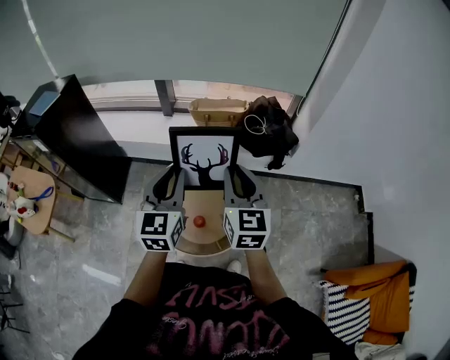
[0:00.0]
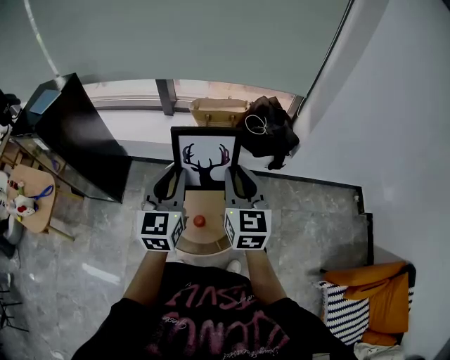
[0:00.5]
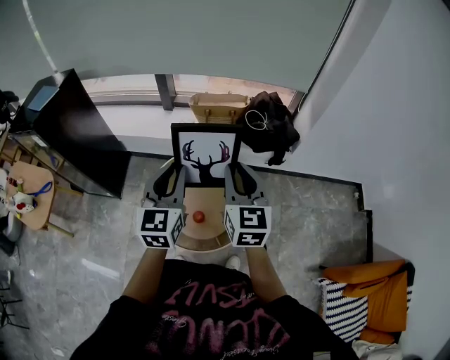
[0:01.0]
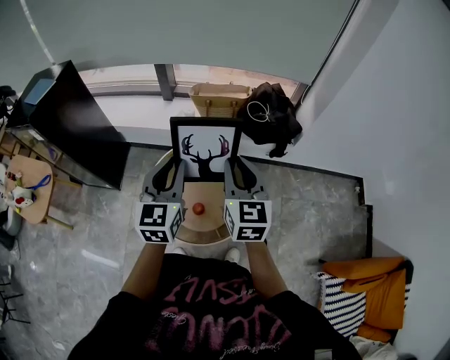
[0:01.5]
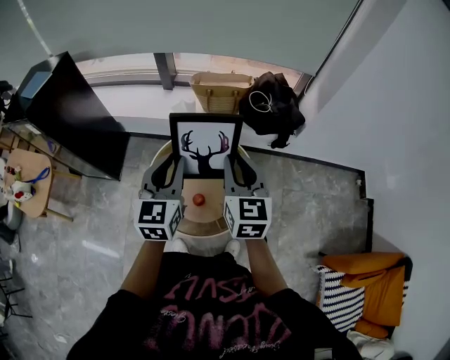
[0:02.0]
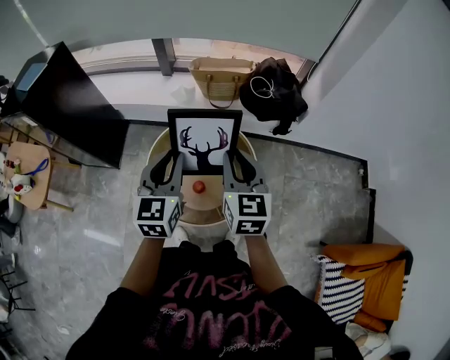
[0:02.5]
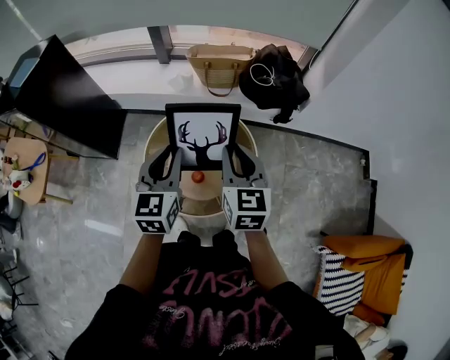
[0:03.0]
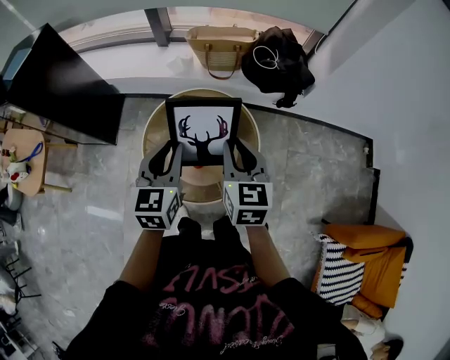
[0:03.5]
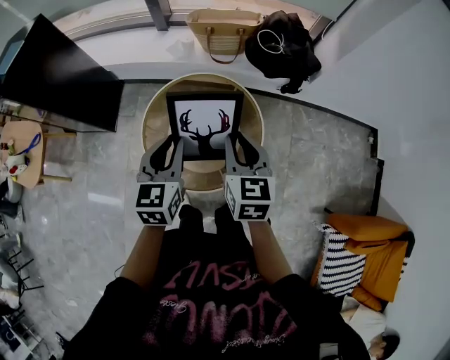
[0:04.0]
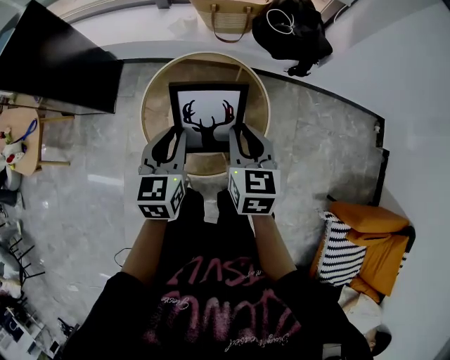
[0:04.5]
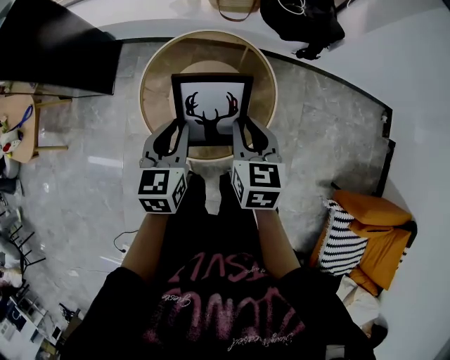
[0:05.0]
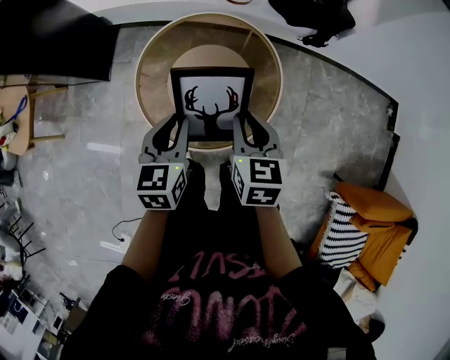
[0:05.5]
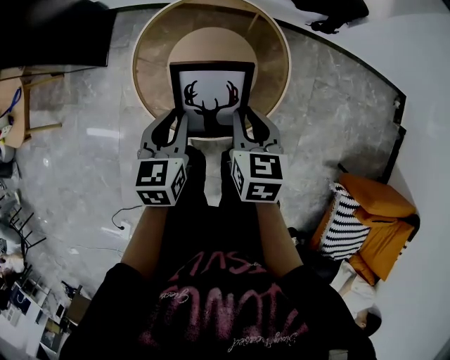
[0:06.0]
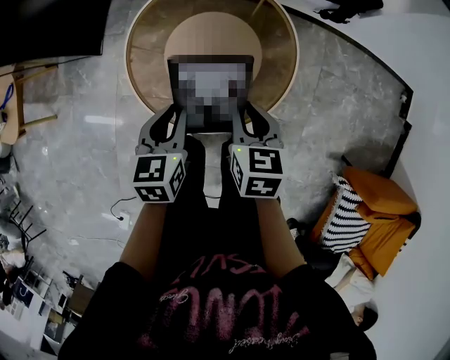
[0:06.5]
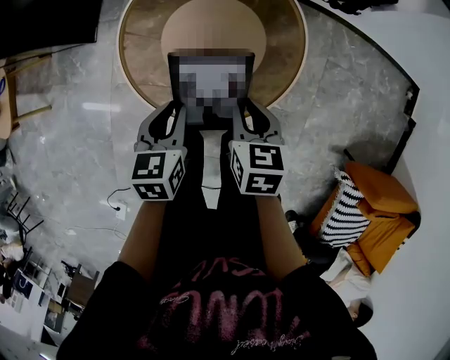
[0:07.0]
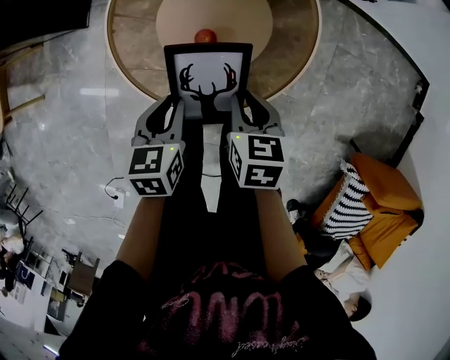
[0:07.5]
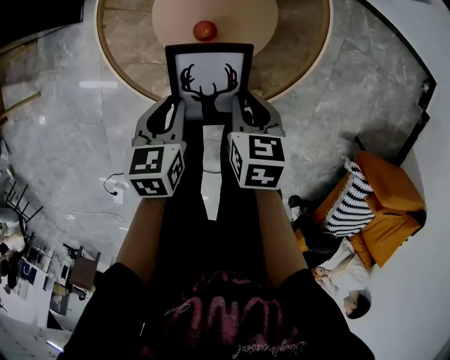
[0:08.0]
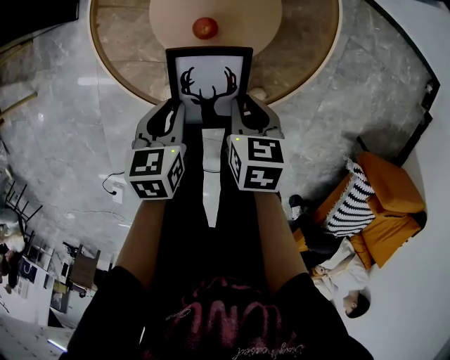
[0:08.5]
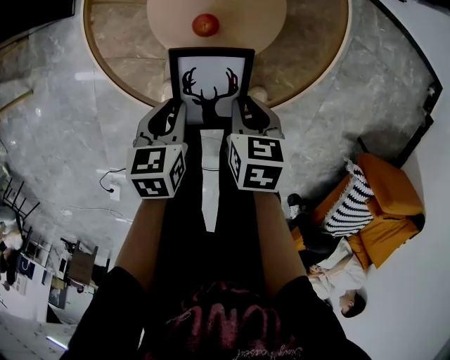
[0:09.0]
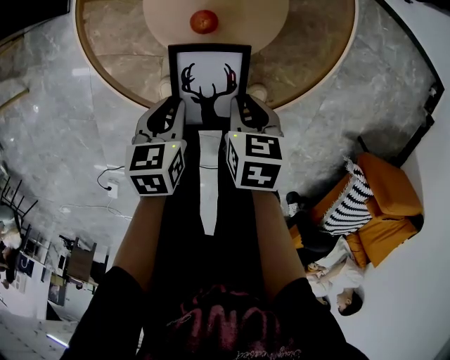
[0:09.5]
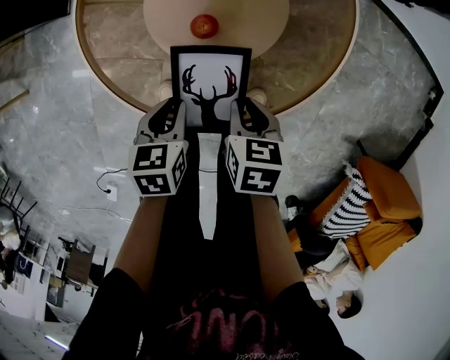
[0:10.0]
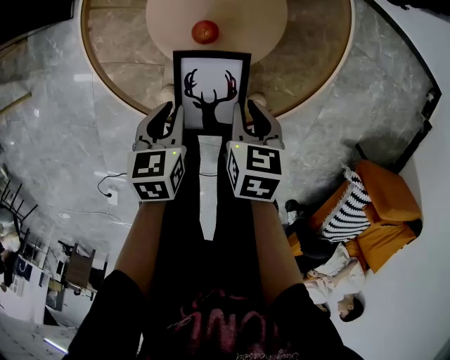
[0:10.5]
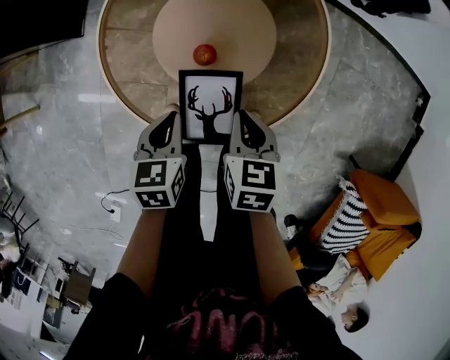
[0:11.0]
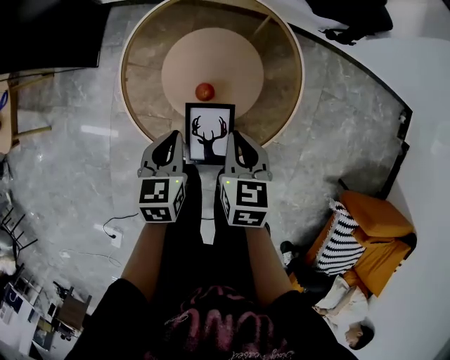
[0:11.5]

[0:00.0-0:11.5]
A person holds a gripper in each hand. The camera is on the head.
0:00.0 to 0:02.0: The right gripper changes place by approximately 5 cm.
0:02.0 to 0:04.0: Both grippers travel together downward, roughly 10 cm.
0:04.0 to 0:06.0: Both grippers travel together downward, approximately 20 cm.
0:06.0 to 0:07.5: The grippers both shift downward by approximately 15 cm.
0:07.5 to 0:09.5: Both grippers travel together downward, about 15 cm.
0:09.5 to 0:11.5: The left gripper shifts roughly 20 cm upward and forward, while the right gripper travels upward by about 20 cm, and swivels roughly 20 degrees.

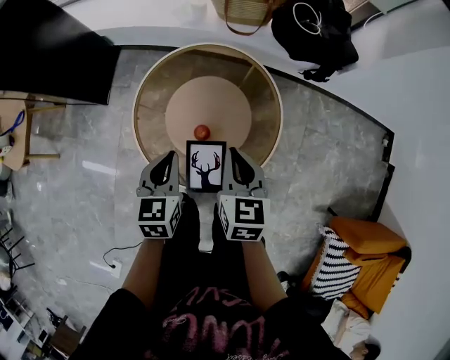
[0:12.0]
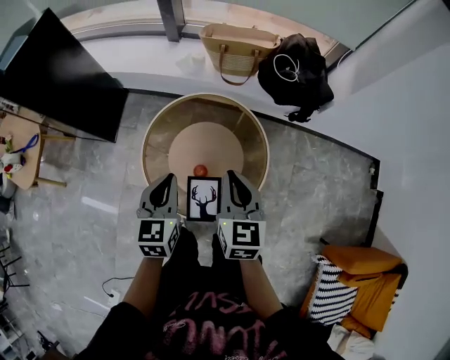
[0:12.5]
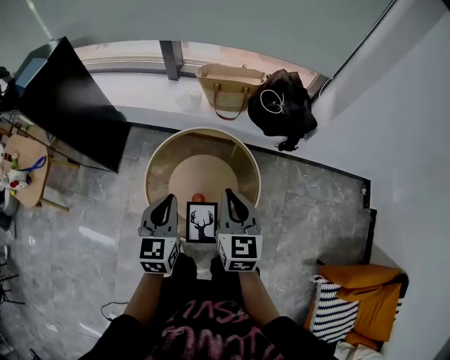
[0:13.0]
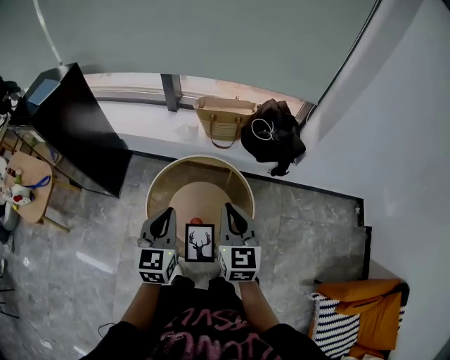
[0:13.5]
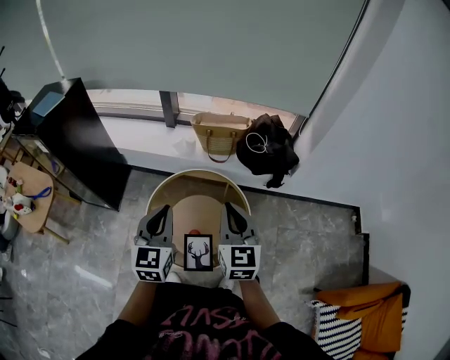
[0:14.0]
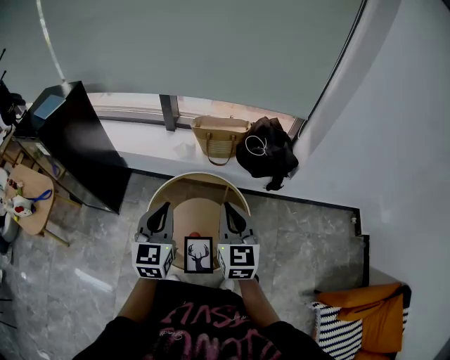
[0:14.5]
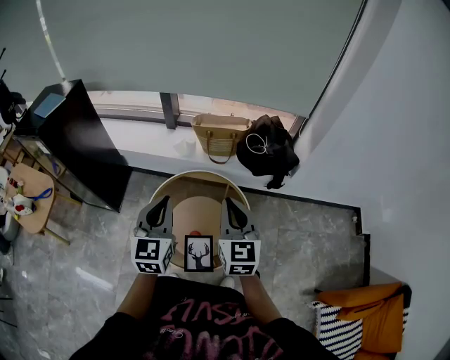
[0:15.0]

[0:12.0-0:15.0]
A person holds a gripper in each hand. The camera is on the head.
0:12.0 to 0:13.5: The grippers both shift upward by about 25 cm. The left gripper changes its angle by some 20 degrees; the right gripper rotates some 20 degrees.
0:13.5 to 0:15.0: The right gripper changes place by about 5 cm; the left gripper heads upward, covering some 5 cm.

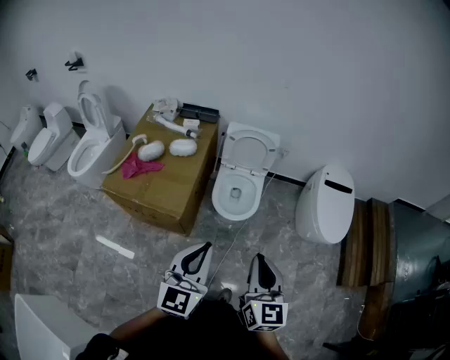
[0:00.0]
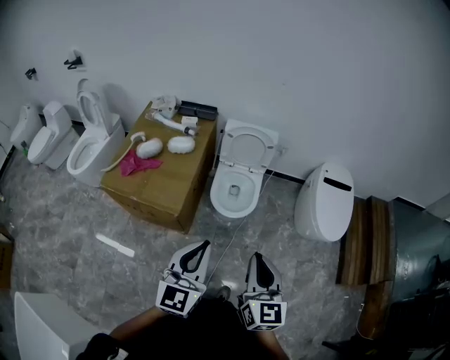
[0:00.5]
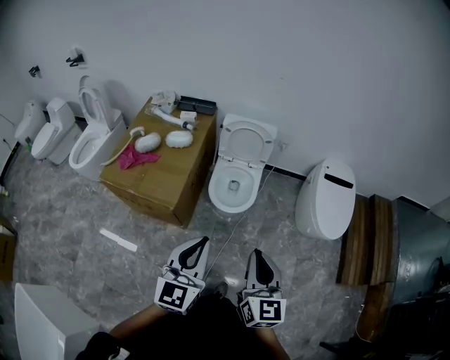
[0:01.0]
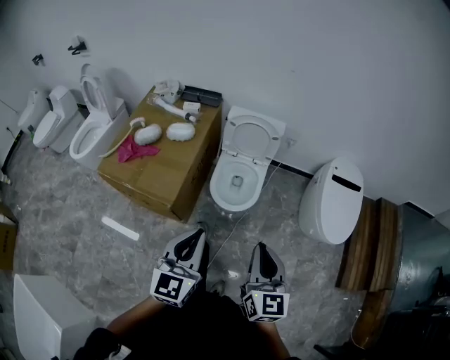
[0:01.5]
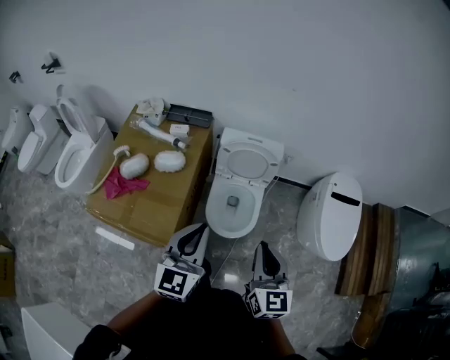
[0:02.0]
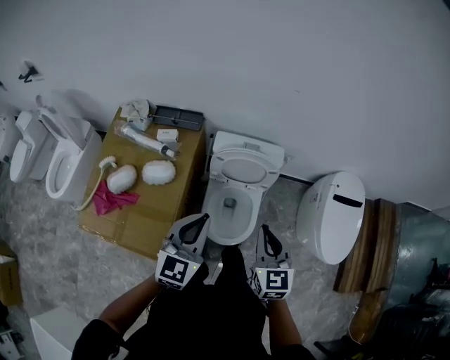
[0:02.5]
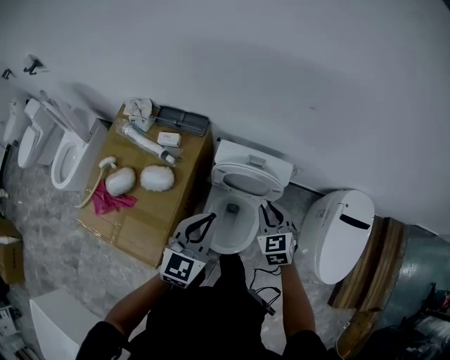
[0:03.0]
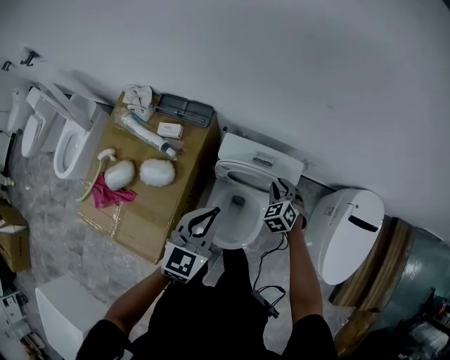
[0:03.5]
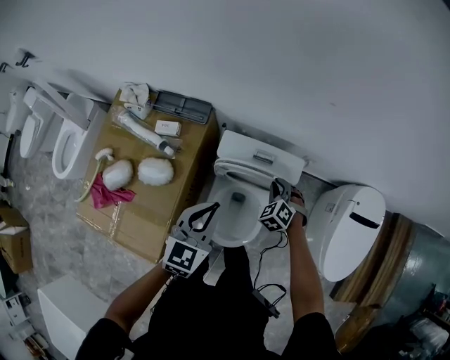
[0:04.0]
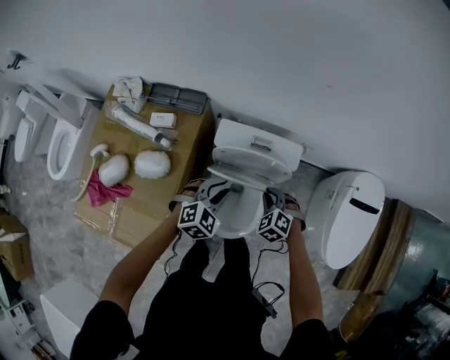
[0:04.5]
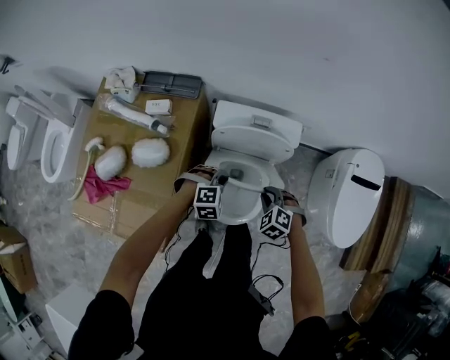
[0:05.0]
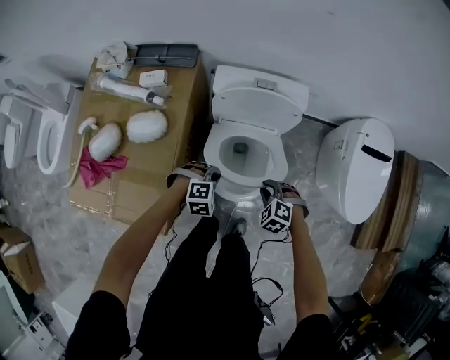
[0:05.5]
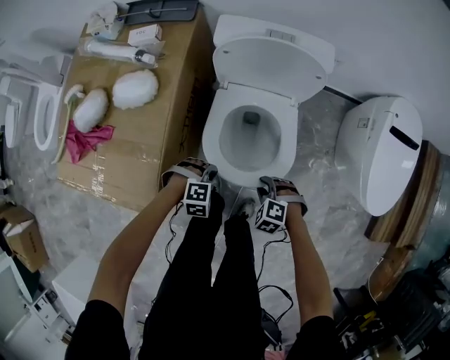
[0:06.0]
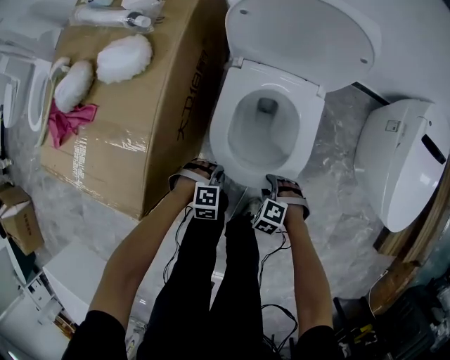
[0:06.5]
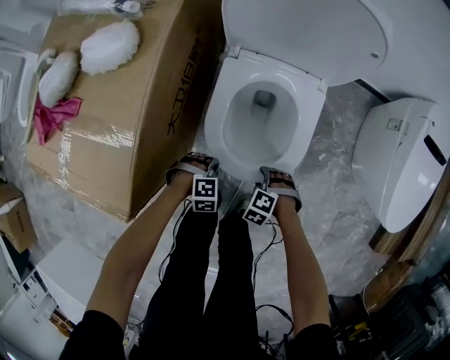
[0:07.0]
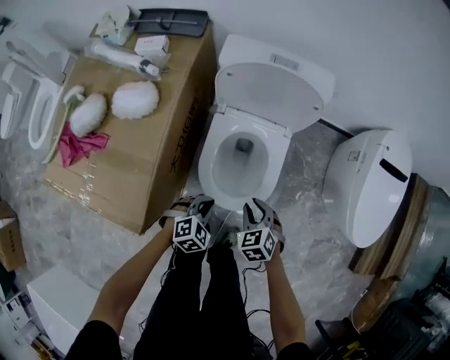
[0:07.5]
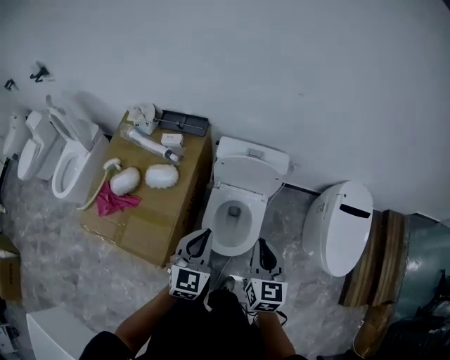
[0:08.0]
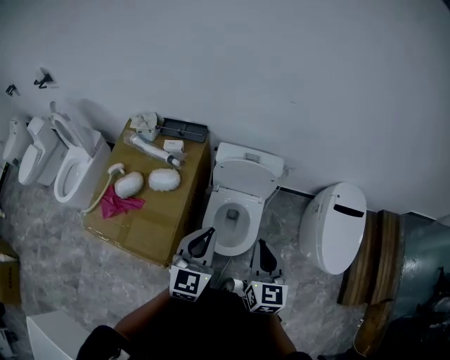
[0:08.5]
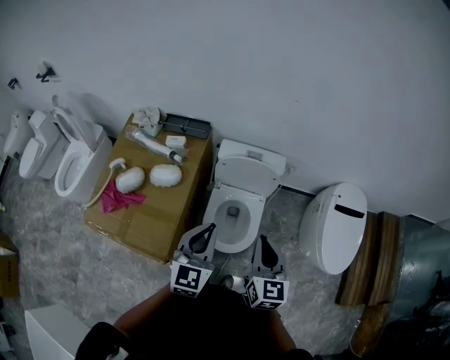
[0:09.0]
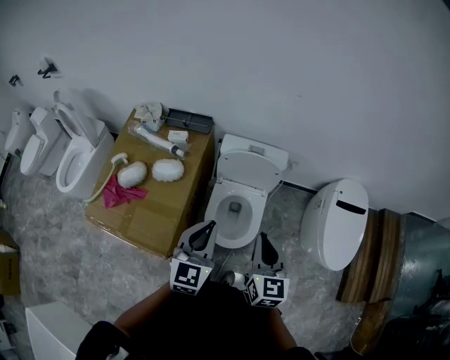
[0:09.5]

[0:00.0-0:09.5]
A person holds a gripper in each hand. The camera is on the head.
0:00.0 to 0:02.0: The grippers both shift forward by some 25 cm.
0:02.0 to 0:04.0: The right gripper shifts approximately 60 cm forward and downward, and angles its fingers downward, by about 40 degrees. Meanwhile the left gripper heads forward, covering approximately 35 cm.
0:04.0 to 0:05.5: The right gripper is displaced backward by approximately 30 cm. Meanwhile the left gripper heads downward and backward, covering some 35 cm, angles its fingers downward, by about 40 degrees, and opens, then closes again.
0:05.5 to 0:07.5: The left gripper shifts some 10 cm downward, and swivels approximately 30 degrees, while the right gripper moves approximately 35 cm downward and comes back, turns by some 30 degrees, and opens and closes again.
0:07.5 to 0:09.5: Both grippers move upward, about 50 cm. The left gripper tips its fingers upward by roughly 40 degrees. Meanwhile the right gripper points its fingers roughly 40 degrees further upward, and closes up.

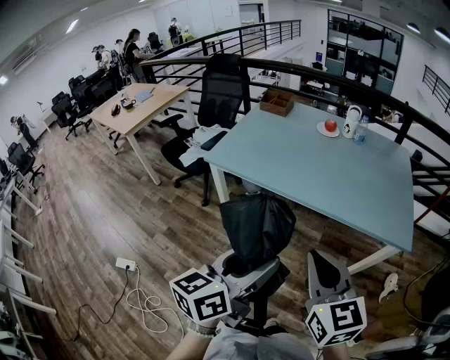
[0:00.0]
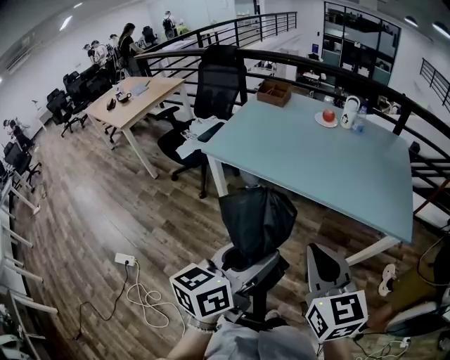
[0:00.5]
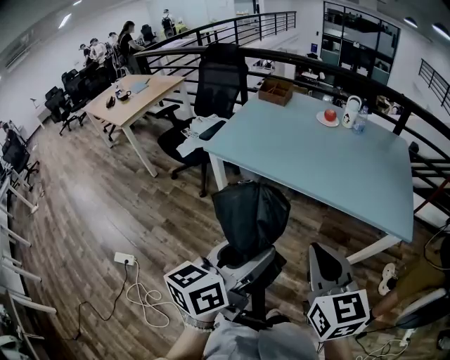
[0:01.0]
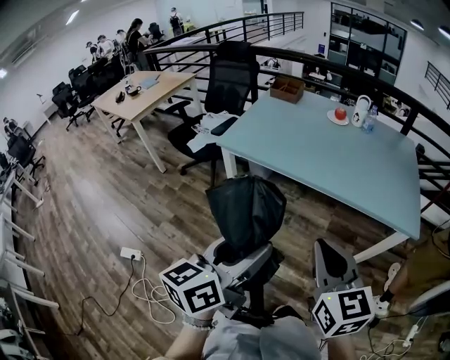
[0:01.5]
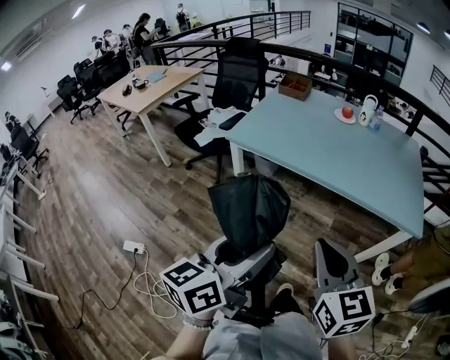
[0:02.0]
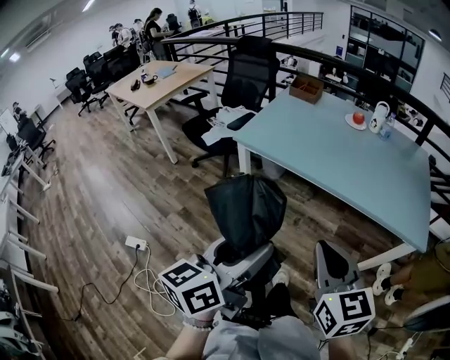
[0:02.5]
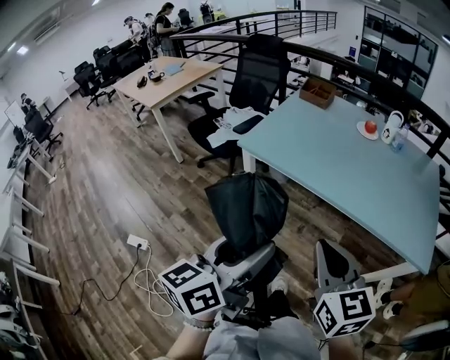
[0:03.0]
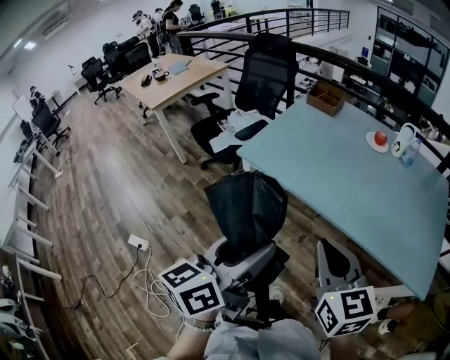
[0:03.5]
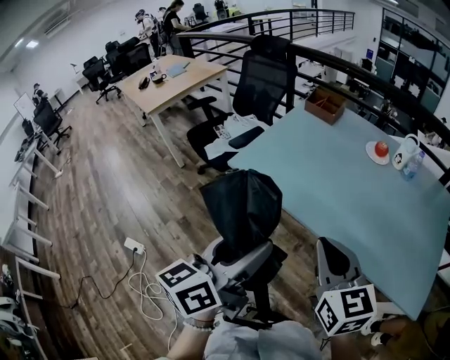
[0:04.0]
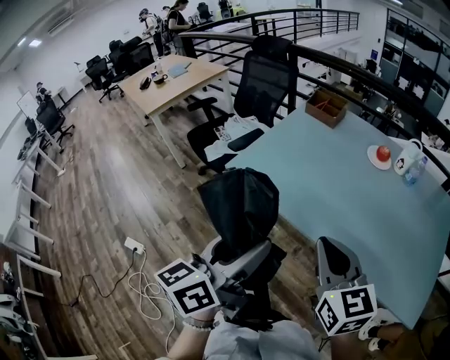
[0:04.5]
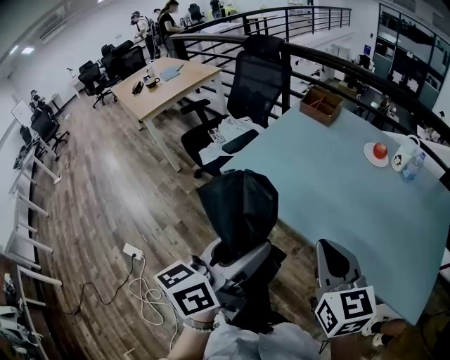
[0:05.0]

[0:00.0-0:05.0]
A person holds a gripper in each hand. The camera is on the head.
0:00.0 to 0:02.5: The grippers both shift to the left by roughly 10 cm.
0:02.5 to 0:05.0: The grippers both shift forward by some 25 cm.
